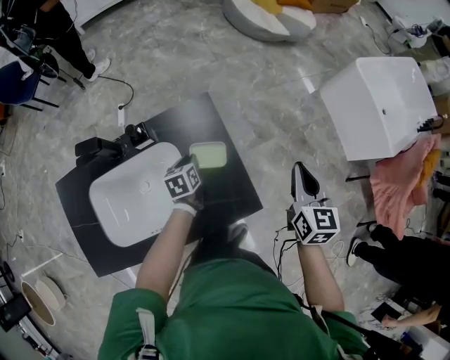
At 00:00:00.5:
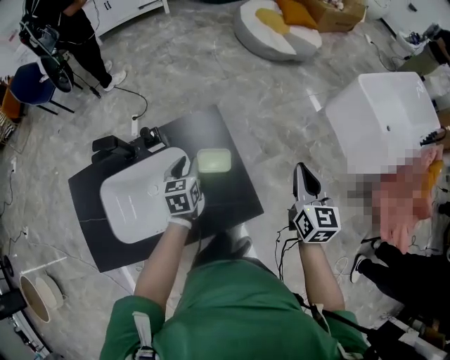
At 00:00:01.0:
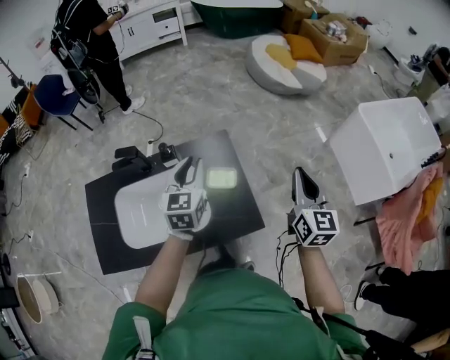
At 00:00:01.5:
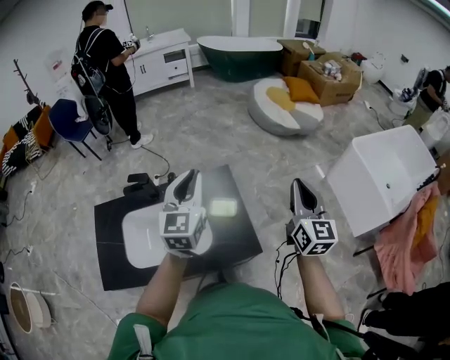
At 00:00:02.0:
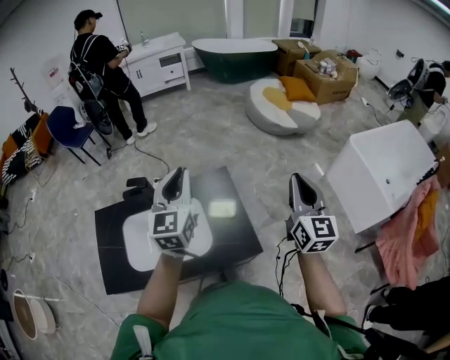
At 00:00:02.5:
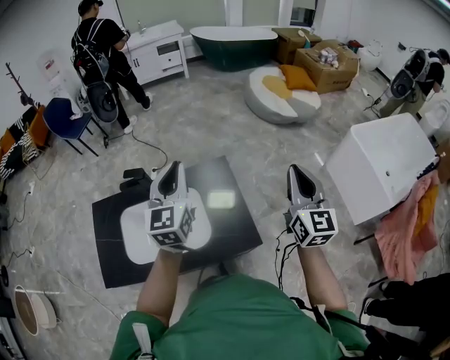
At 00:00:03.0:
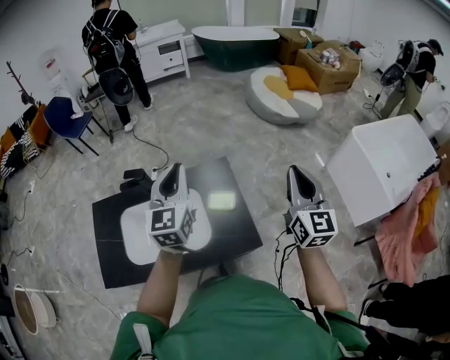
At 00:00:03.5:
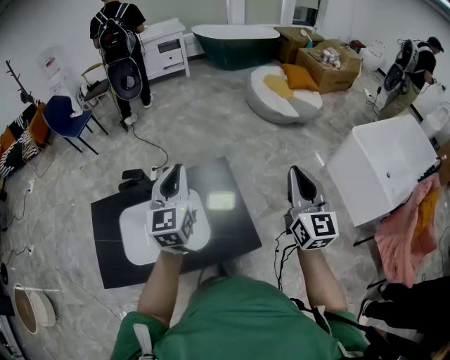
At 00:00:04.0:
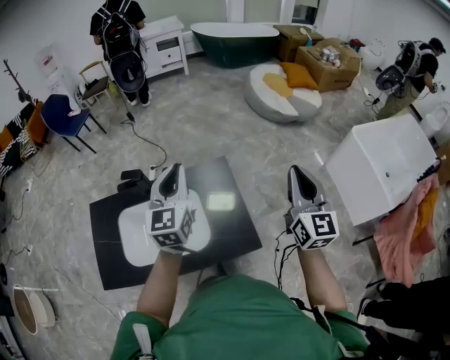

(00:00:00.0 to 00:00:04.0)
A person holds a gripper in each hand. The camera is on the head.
00:00:00.0 - 00:00:02.0: The left gripper heads upward, covering roughly 50 cm, and points its fingers roughly 50 degrees further upward. The right gripper moves upward, approximately 25 cm, and turns by roughly 30 degrees.
00:00:02.0 - 00:00:04.0: The left gripper moves approximately 5 cm.

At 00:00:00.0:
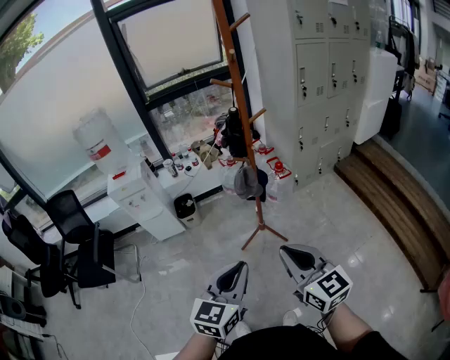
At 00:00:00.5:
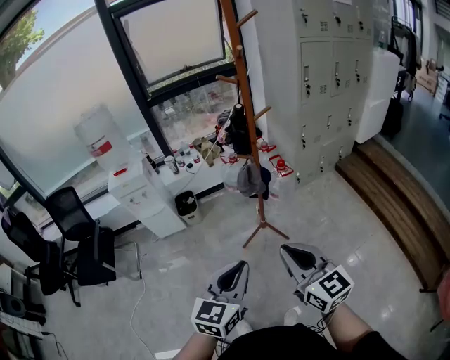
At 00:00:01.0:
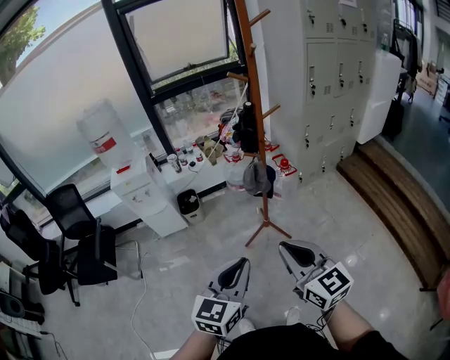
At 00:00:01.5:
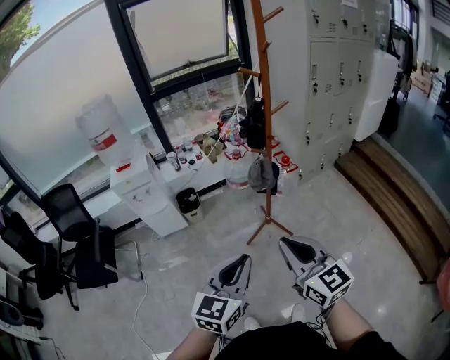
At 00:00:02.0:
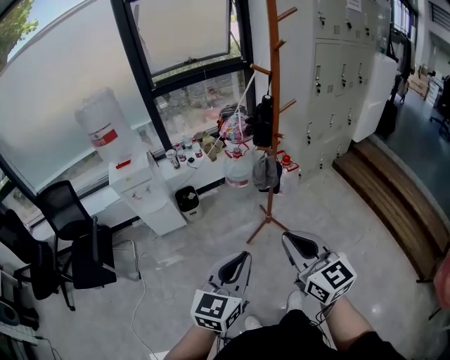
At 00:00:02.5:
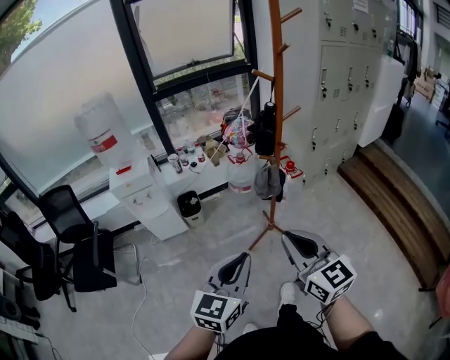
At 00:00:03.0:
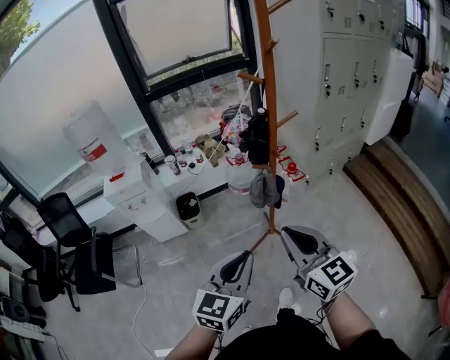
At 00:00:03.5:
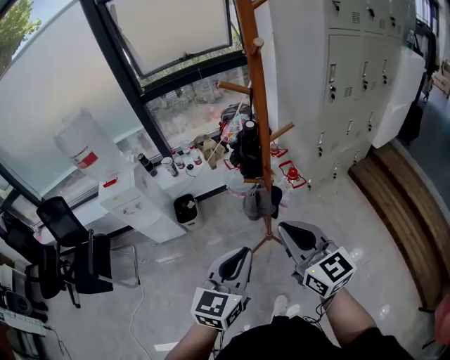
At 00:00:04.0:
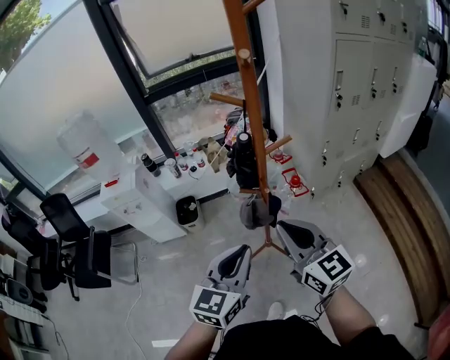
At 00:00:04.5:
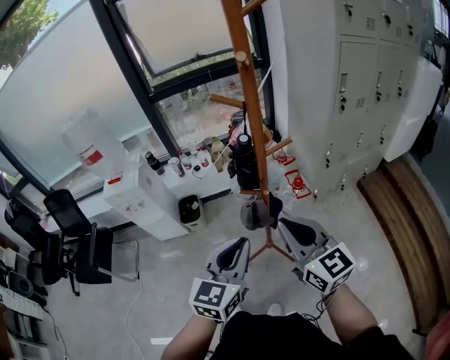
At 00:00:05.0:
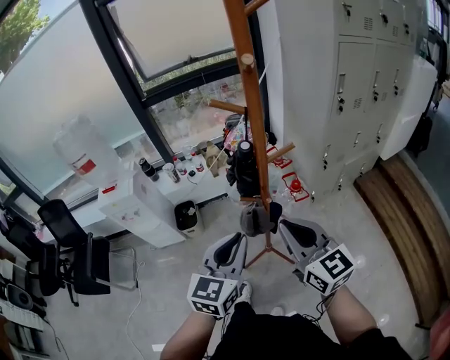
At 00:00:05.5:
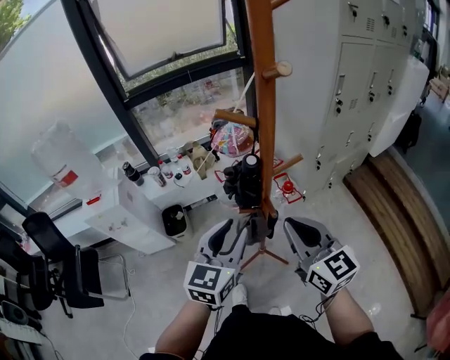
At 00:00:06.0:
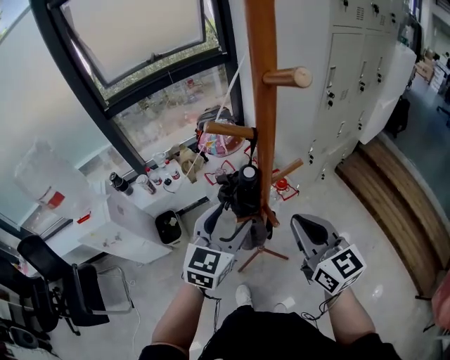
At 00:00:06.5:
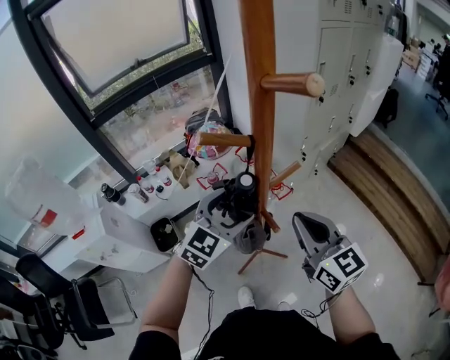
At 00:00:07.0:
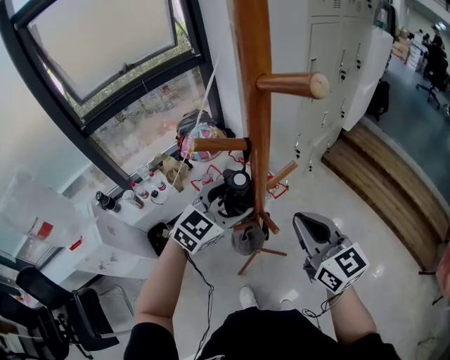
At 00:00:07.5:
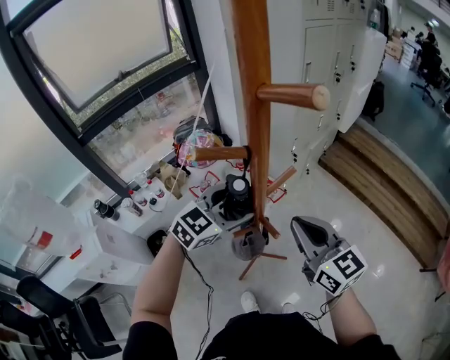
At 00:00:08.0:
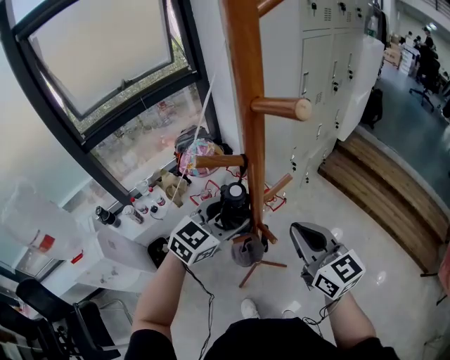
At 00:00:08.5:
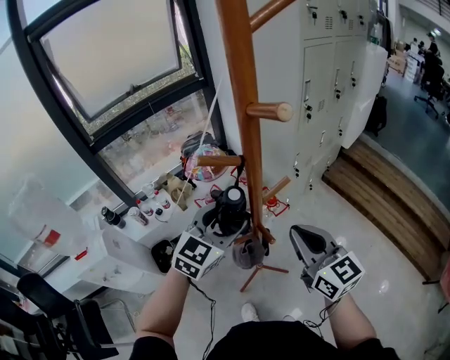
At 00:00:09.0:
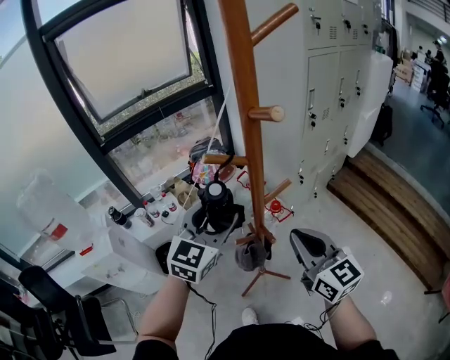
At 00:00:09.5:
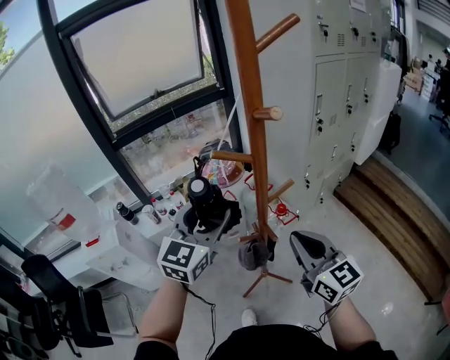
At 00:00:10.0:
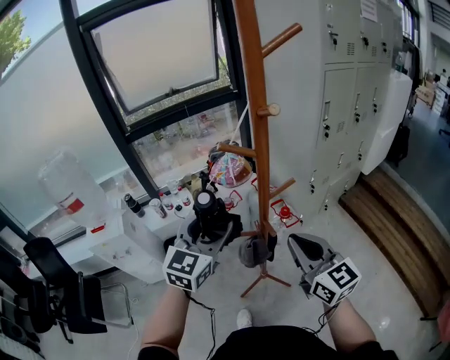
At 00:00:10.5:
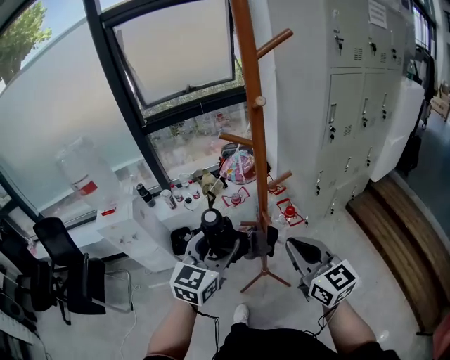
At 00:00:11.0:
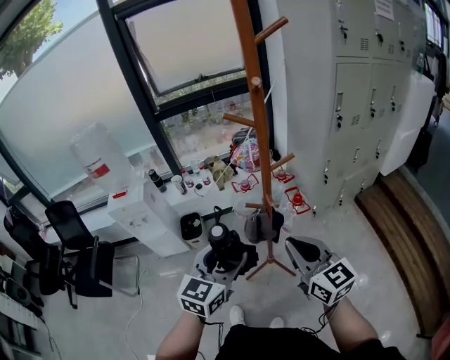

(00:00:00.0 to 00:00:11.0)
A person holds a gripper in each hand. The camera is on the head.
00:00:00.0 - 00:00:02.0: The two grippers go approximately 15 cm to the left.
00:00:02.0 - 00:00:03.5: The grippers both shift forward and to the right by approximately 25 cm.
00:00:03.5 - 00:00:05.5: Both grippers travel together forward, approximately 15 cm.
00:00:05.5 - 00:00:07.5: The right gripper ends up approximately 5 cm from where it was, while the left gripper ends up approximately 15 cm from where it was, changes its angle by some 50 degrees, and opens its fingers.
00:00:07.5 - 00:00:09.0: The left gripper is displaced upward and to the left by some 10 cm, and changes its angle by roughly 30 degrees.
00:00:09.0 - 00:00:11.0: The right gripper shifts about 15 cm backward. Meanwhile the left gripper goes about 25 cm backward, and rotates some 20 degrees.

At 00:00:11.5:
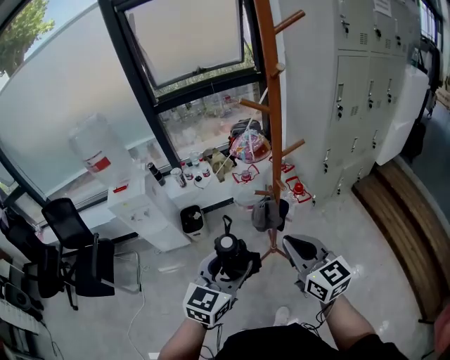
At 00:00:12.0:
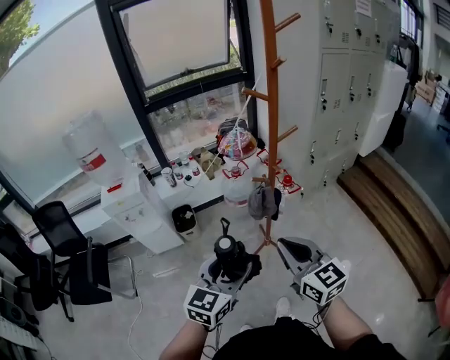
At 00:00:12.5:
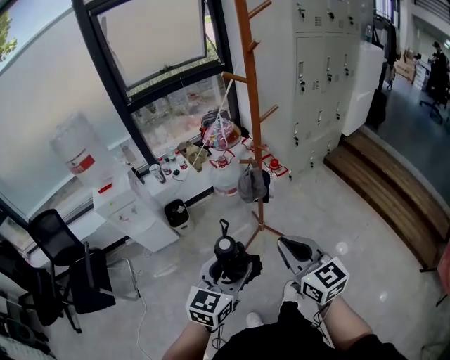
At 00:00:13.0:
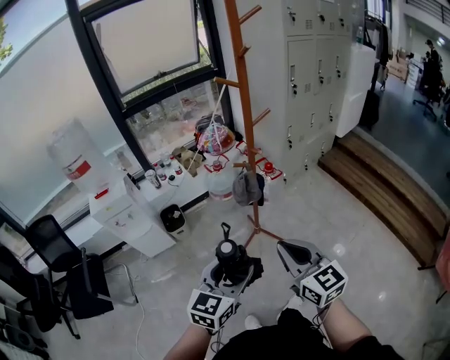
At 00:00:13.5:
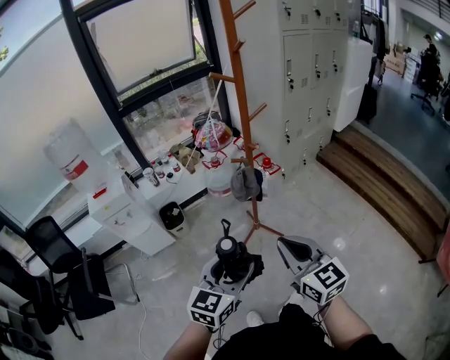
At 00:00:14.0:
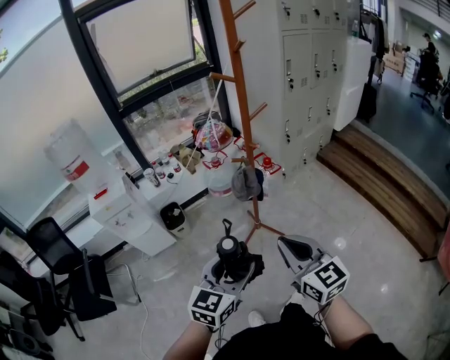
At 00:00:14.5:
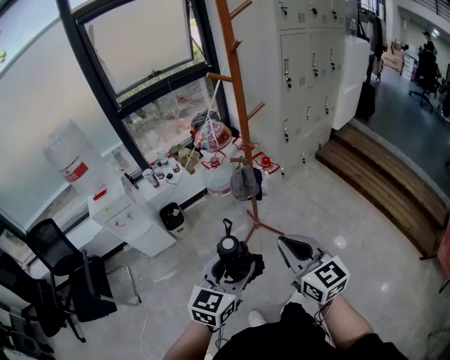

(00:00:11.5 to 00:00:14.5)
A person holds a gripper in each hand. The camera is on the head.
00:00:11.5 - 00:00:13.0: The grippers both shift backward by approximately 15 cm.
00:00:13.0 - 00:00:14.5: Both grippers stay about where they are.

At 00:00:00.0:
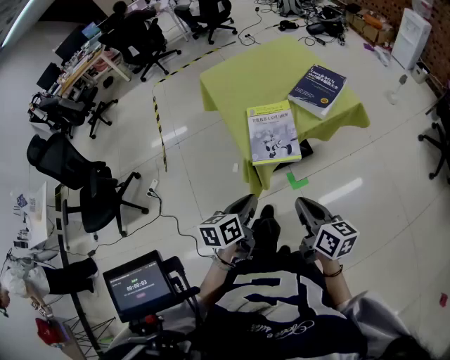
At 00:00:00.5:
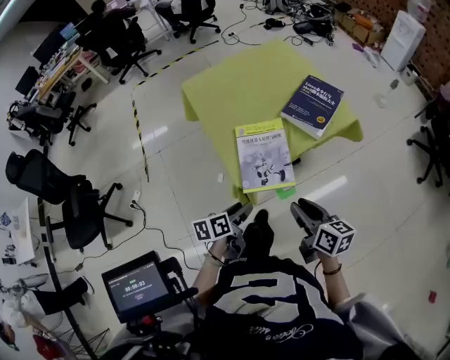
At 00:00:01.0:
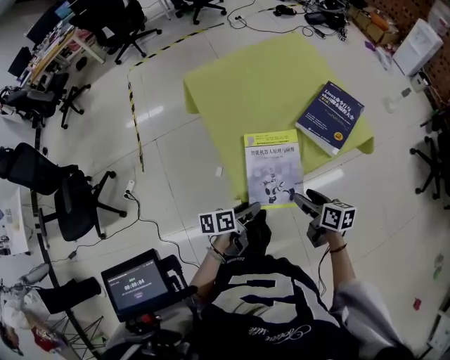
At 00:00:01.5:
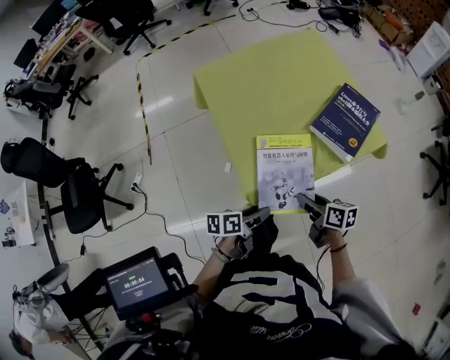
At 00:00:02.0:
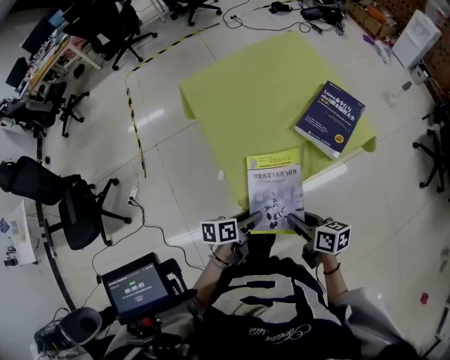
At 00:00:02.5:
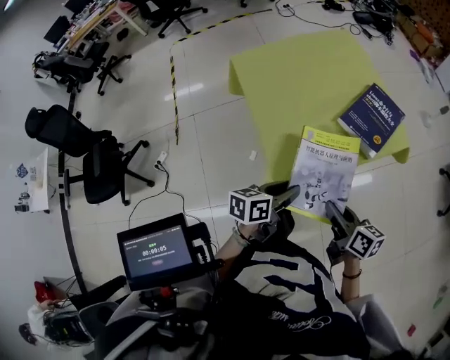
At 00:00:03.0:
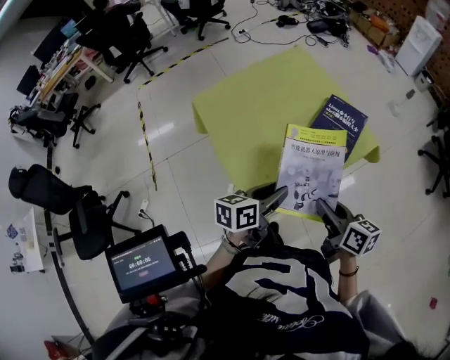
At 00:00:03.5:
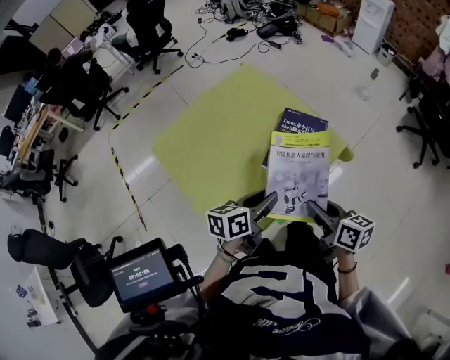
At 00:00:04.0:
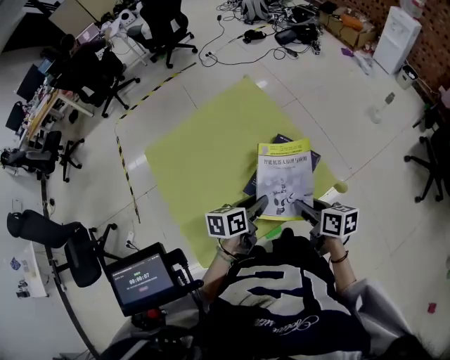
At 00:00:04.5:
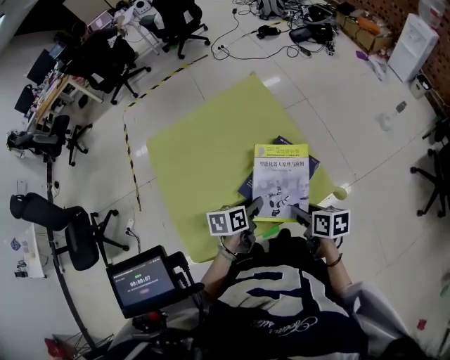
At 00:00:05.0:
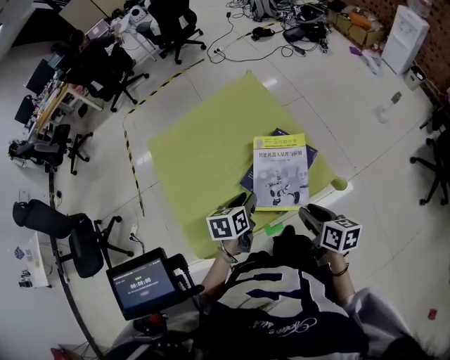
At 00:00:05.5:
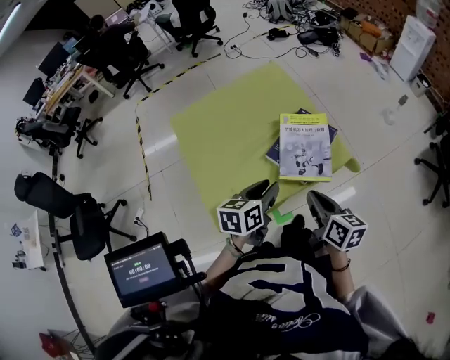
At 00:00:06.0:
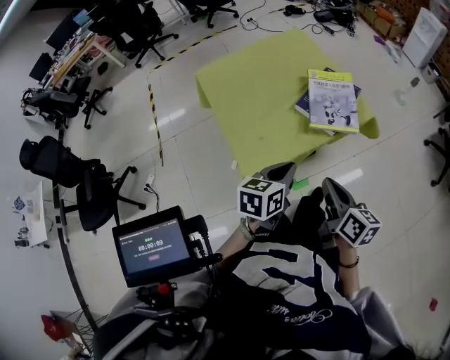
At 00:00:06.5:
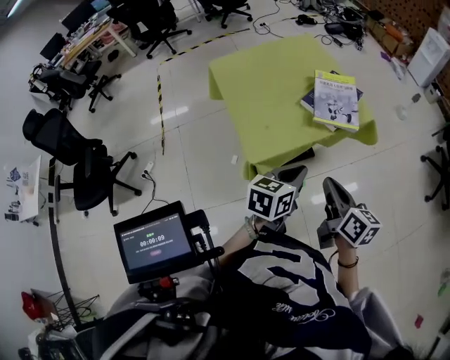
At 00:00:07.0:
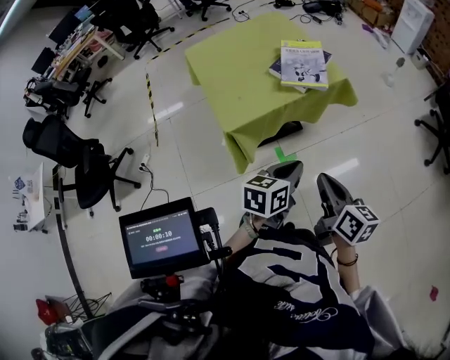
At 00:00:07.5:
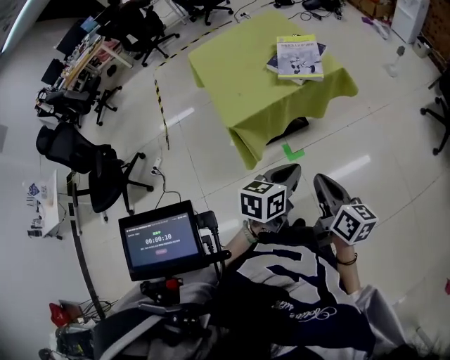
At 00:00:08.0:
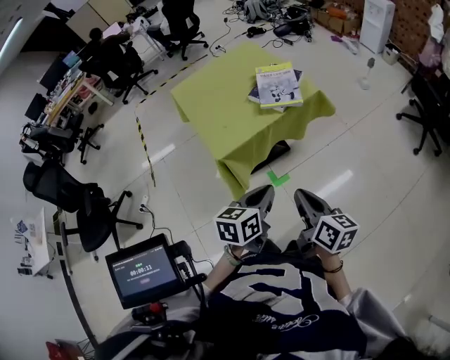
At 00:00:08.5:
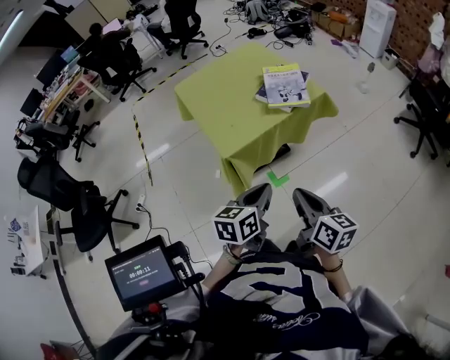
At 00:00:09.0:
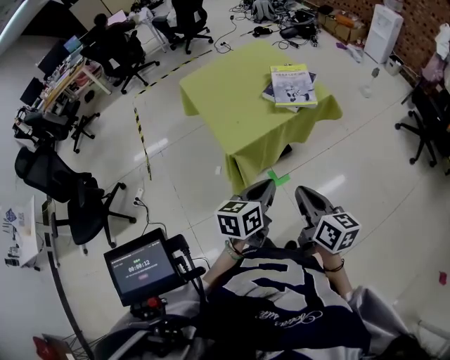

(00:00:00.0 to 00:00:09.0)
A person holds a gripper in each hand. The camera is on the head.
00:00:00.0 - 00:00:02.0: The two grippers go approximately 25 cm forward and downward. The left gripper rotates roughly 30 degrees, and opens, while the right gripper swivels roughly 20 degrees, and opens and closes again.
00:00:02.0 - 00:00:04.5: The two grippers go about 35 cm forward and to the right.
00:00:04.5 - 00:00:07.0: The two grippers travel together, backward, about 40 cm. The right gripper rotates approximately 30 degrees, and closes. Meanwhile the left gripper rotates approximately 20 degrees, and closes up.
00:00:07.0 - 00:00:09.0: Both grippers travel together to the left, roughly 10 cm.
